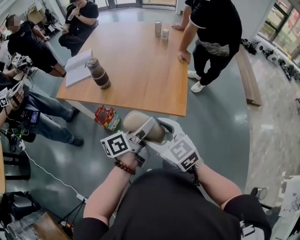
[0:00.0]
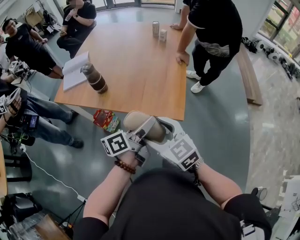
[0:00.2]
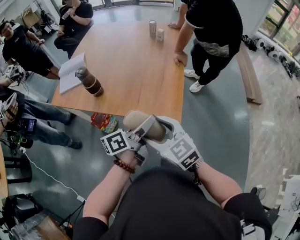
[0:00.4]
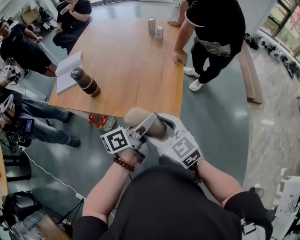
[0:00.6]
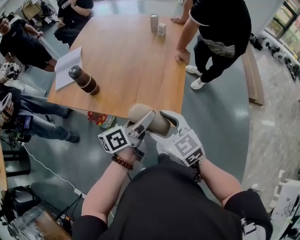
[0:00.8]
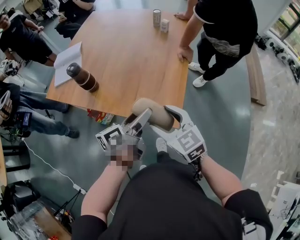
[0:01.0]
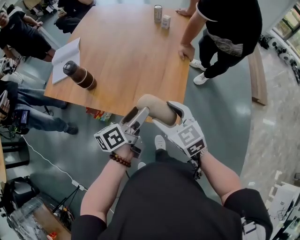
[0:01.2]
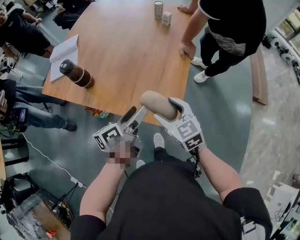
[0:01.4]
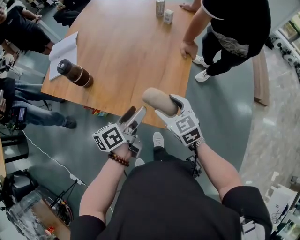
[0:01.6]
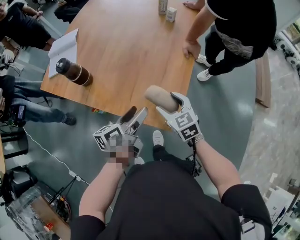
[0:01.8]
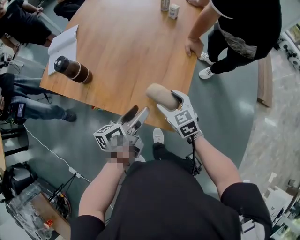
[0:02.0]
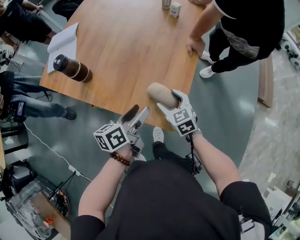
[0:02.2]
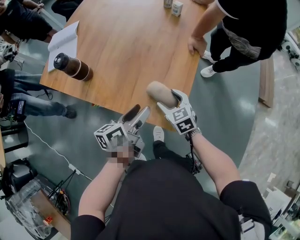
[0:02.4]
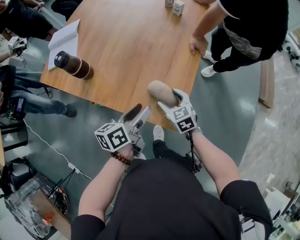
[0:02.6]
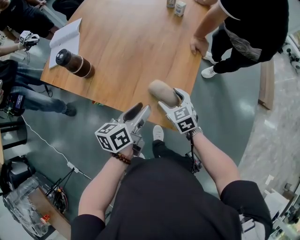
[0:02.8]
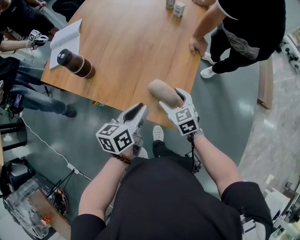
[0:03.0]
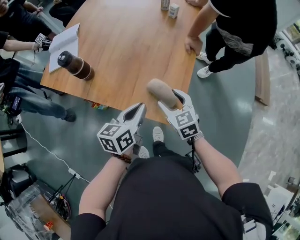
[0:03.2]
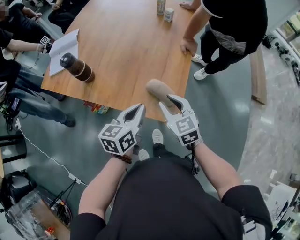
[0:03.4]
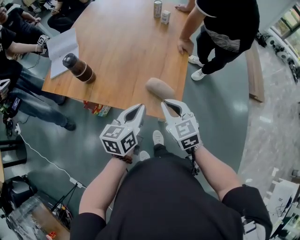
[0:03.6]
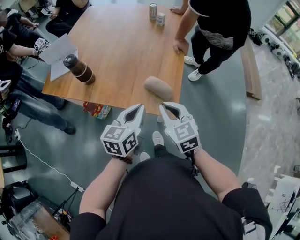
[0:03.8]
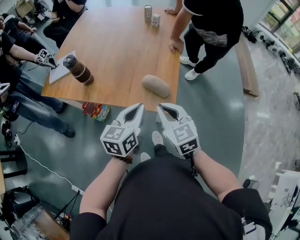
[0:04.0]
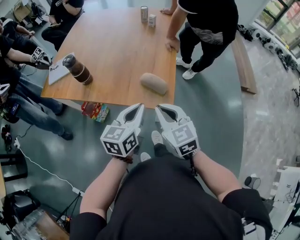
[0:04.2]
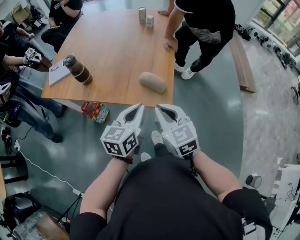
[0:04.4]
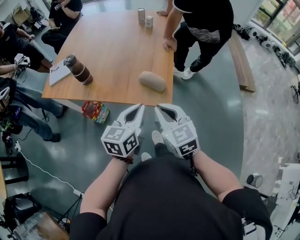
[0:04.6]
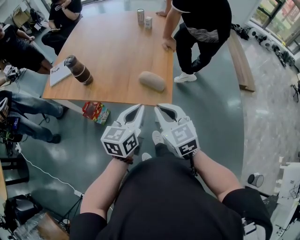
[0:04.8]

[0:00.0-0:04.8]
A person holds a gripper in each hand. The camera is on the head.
0:00.0 to 0:01.6: The left gripper travels forward and downward by approximately 15 cm. The right gripper moves forward, to the right and downward, about 30 cm.
0:01.6 to 0:03.2: The right gripper goes downward and returns, approximately 10 cm each way; the left gripper turns by some 20 degrees, and closes its fingers.
0:03.2 to 0:04.8: The left gripper travels backward and upward by about 15 cm, while the right gripper is displaced backward and upward by some 20 cm, and closes its fingers.

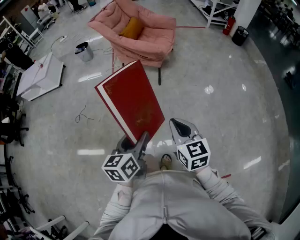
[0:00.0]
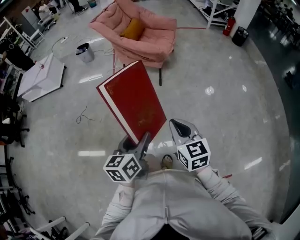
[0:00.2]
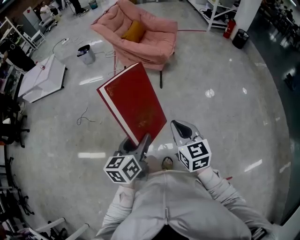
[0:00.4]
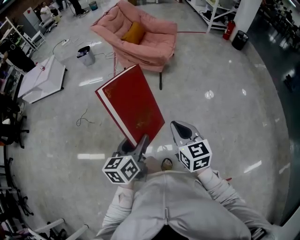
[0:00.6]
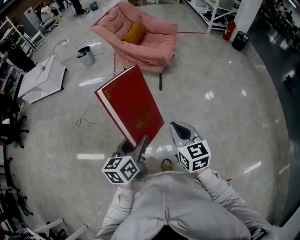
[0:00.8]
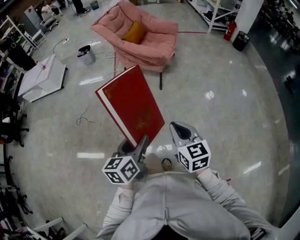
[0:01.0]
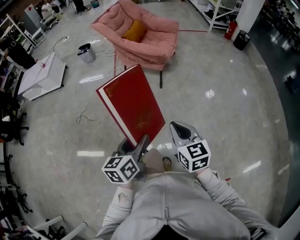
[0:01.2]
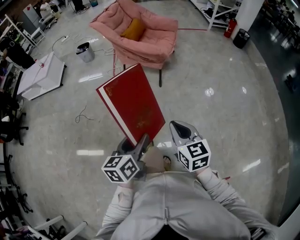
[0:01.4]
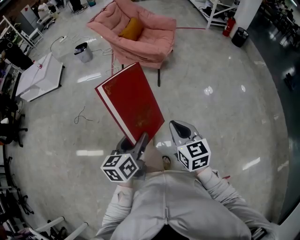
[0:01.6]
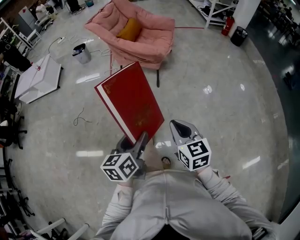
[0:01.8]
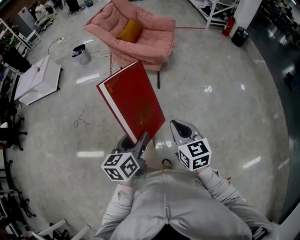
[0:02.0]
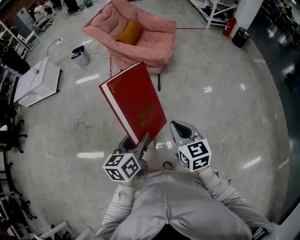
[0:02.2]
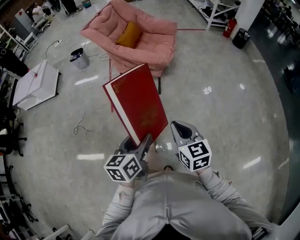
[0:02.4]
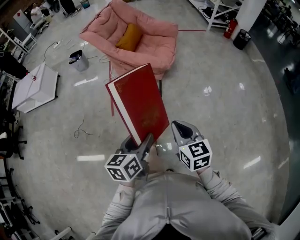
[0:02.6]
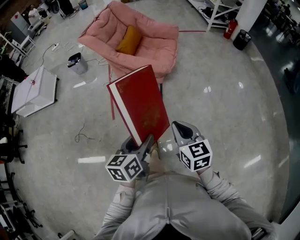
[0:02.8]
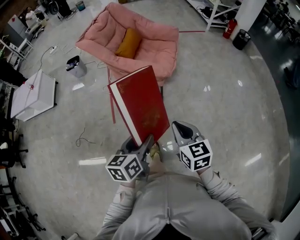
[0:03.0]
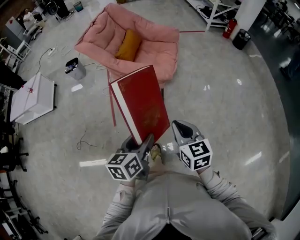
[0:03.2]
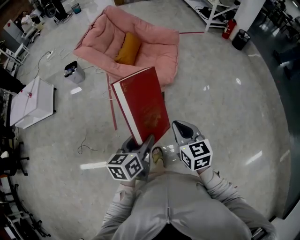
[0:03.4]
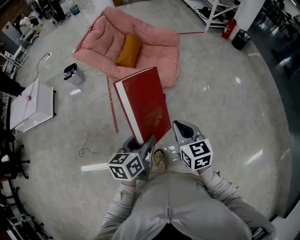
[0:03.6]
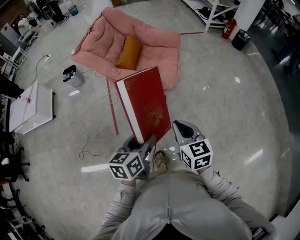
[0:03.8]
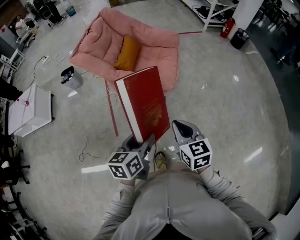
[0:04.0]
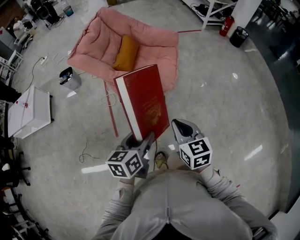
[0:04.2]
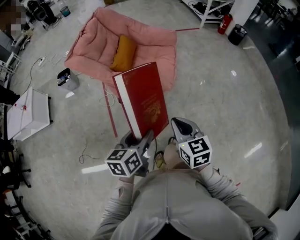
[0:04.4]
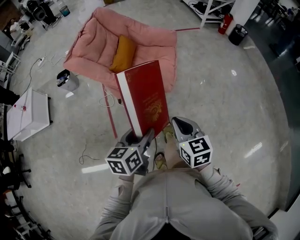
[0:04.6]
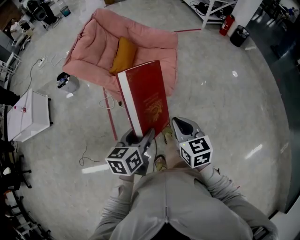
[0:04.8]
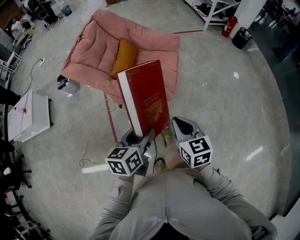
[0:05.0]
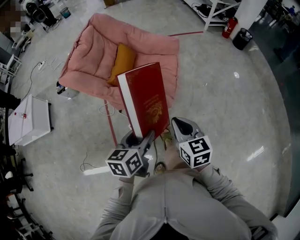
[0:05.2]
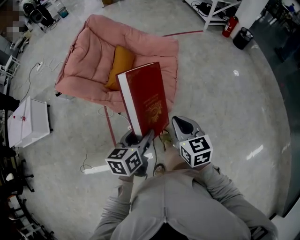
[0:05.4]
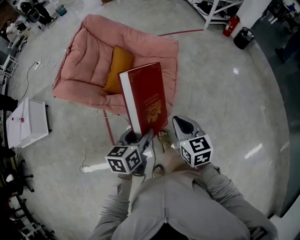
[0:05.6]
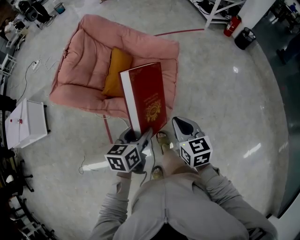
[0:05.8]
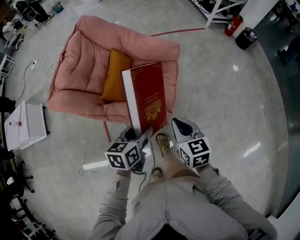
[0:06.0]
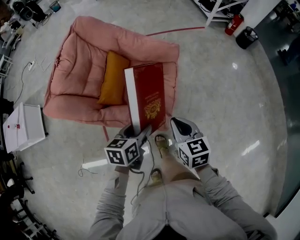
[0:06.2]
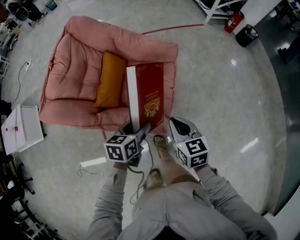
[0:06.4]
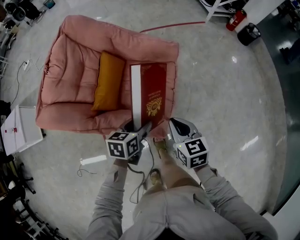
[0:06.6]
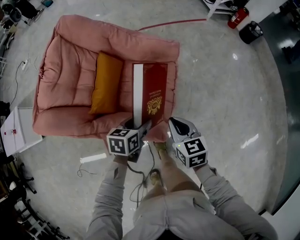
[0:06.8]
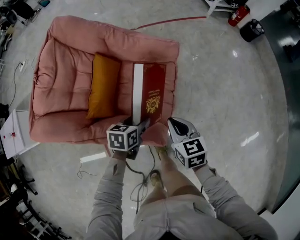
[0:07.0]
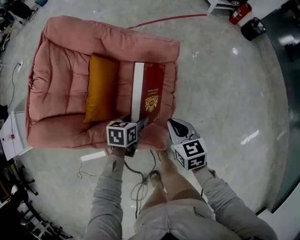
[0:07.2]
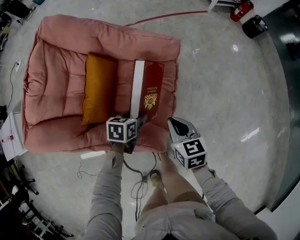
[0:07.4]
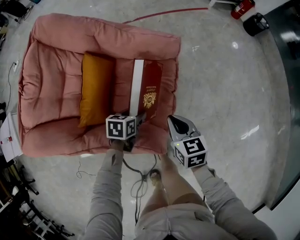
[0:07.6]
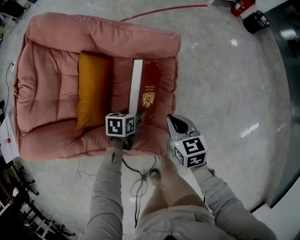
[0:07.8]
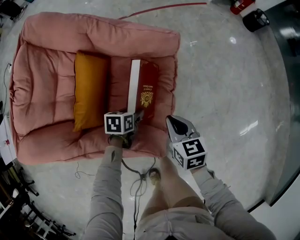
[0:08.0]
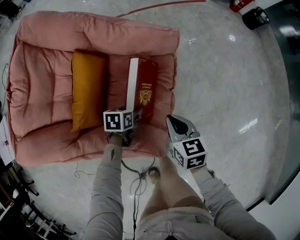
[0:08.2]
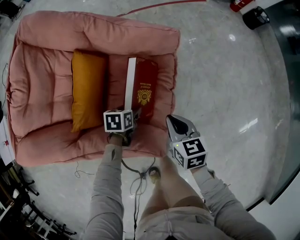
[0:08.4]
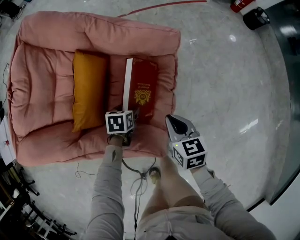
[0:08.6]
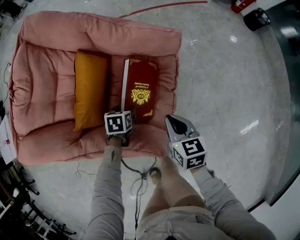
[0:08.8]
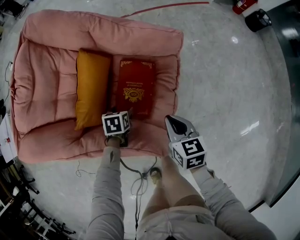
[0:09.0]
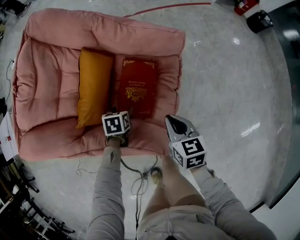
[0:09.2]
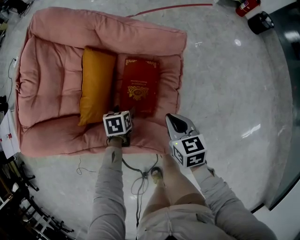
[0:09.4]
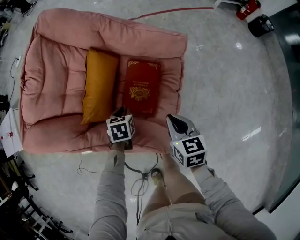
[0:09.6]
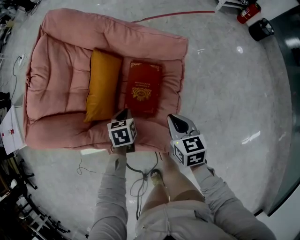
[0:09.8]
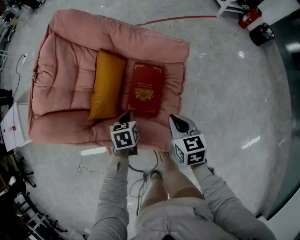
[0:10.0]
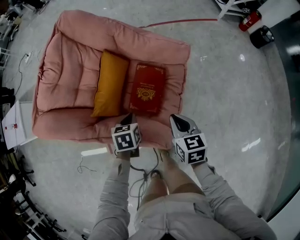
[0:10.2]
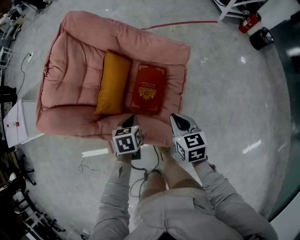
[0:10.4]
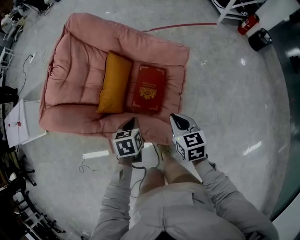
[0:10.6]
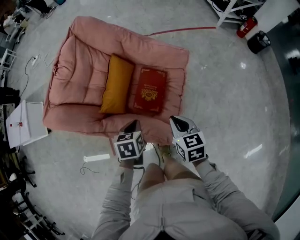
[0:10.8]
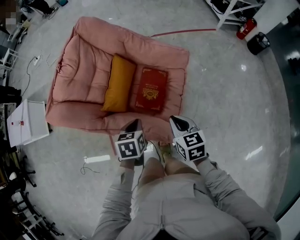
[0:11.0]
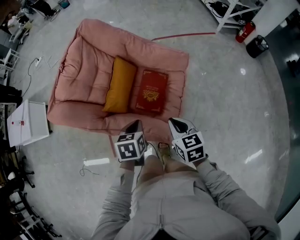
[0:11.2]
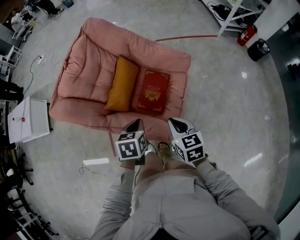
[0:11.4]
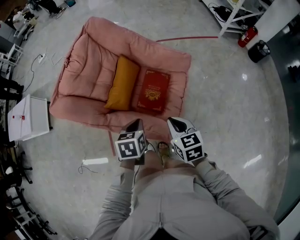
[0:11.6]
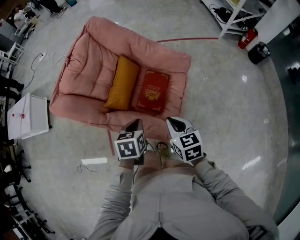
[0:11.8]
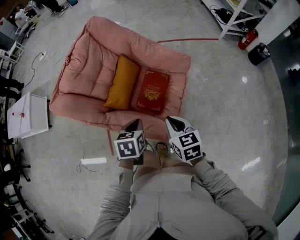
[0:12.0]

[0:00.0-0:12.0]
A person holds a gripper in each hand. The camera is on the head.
0:00.0 to 0:01.6: Neither gripper changes place.
0:01.6 to 0:03.0: Both grippers travel together forward, about 20 cm.
0:03.0 to 0:04.4: Both grippers move forward, some 15 cm.
0:04.4 to 0:06.0: The grippers both shift forward by approximately 25 cm.
0:06.0 to 0:07.6: The left gripper shifts some 30 cm downward and forward, and swivels roughly 30 degrees, while the right gripper moves forward and downward, approximately 25 cm.
0:07.6 to 0:09.0: The left gripper shifts approximately 10 cm to the left and downward.
0:09.0 to 0:10.4: The left gripper moves upward and backward, approximately 15 cm, and closes. Meanwhile the right gripper is displaced upward by some 10 cm.
0:10.4 to 0:12.0: Both grippers travel together upward and backward, roughly 10 cm.

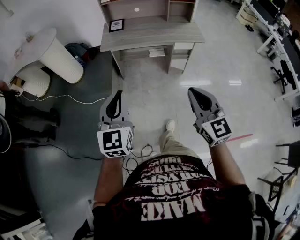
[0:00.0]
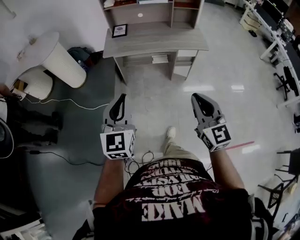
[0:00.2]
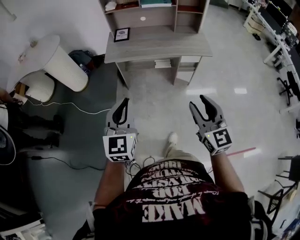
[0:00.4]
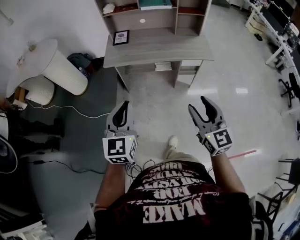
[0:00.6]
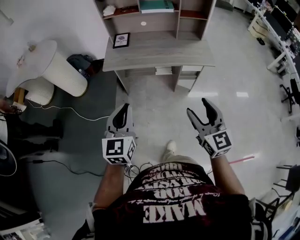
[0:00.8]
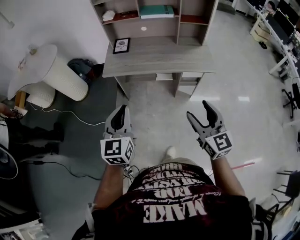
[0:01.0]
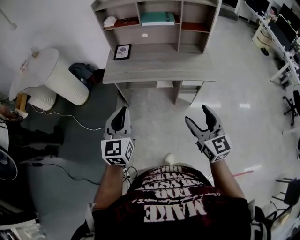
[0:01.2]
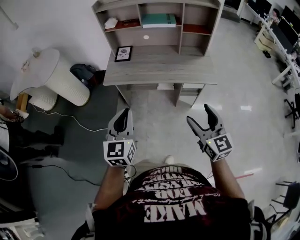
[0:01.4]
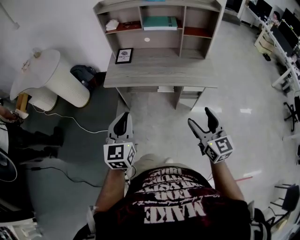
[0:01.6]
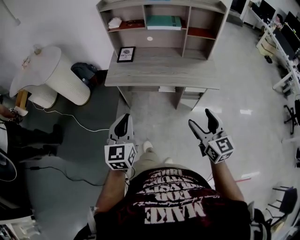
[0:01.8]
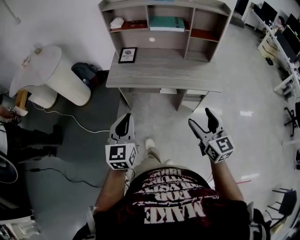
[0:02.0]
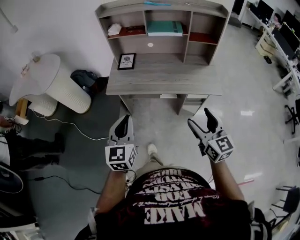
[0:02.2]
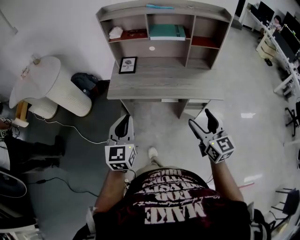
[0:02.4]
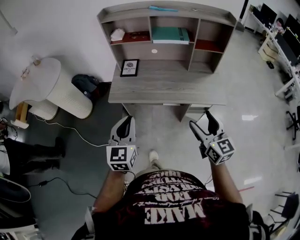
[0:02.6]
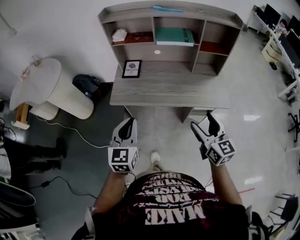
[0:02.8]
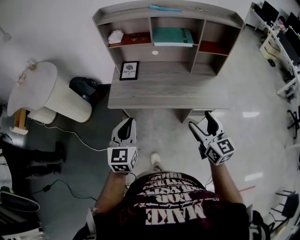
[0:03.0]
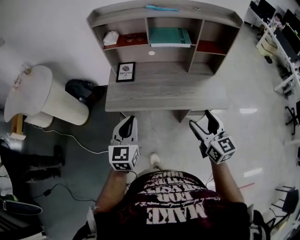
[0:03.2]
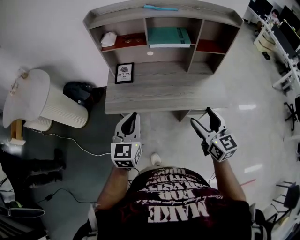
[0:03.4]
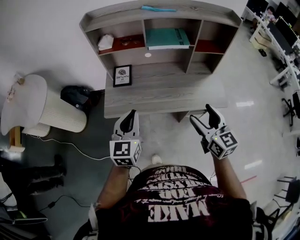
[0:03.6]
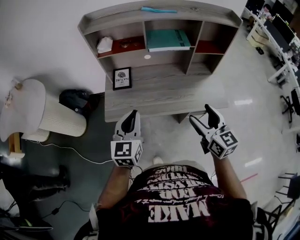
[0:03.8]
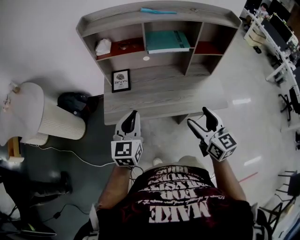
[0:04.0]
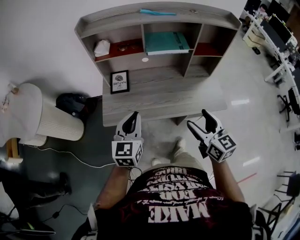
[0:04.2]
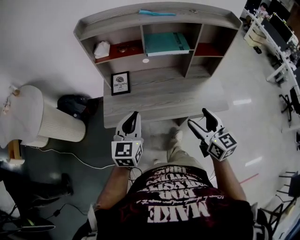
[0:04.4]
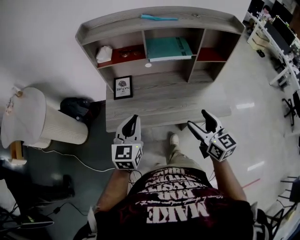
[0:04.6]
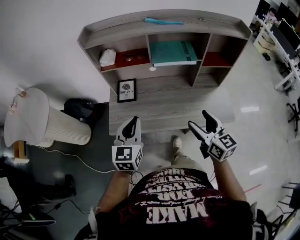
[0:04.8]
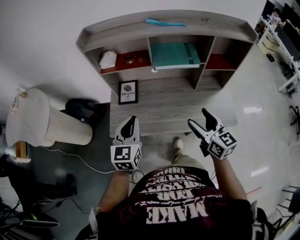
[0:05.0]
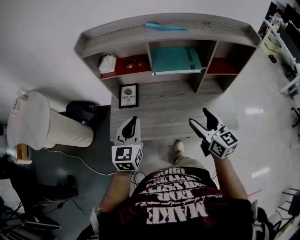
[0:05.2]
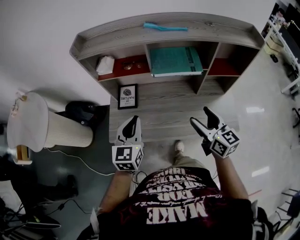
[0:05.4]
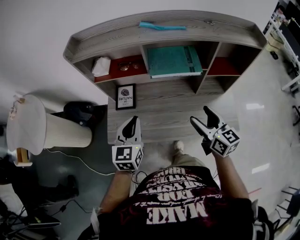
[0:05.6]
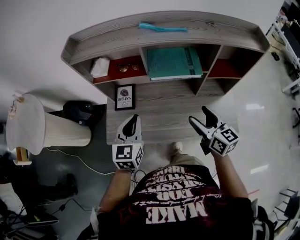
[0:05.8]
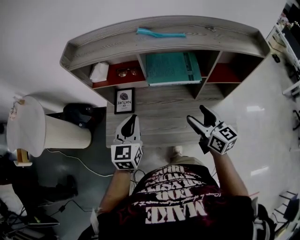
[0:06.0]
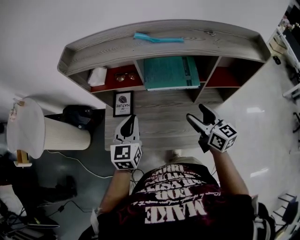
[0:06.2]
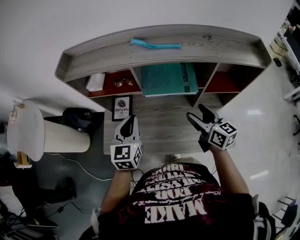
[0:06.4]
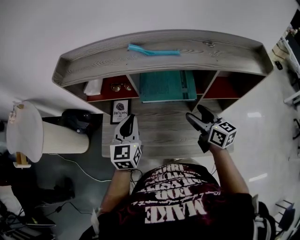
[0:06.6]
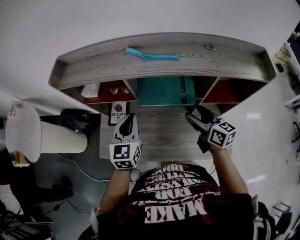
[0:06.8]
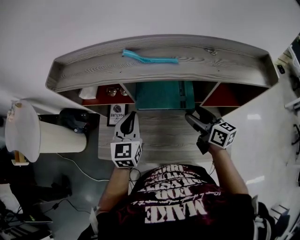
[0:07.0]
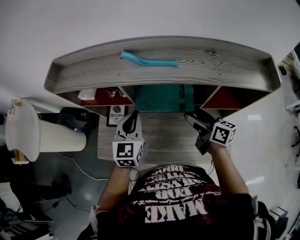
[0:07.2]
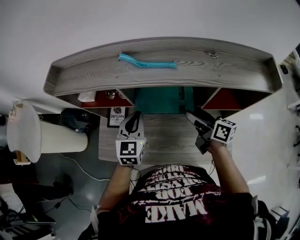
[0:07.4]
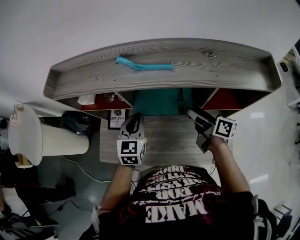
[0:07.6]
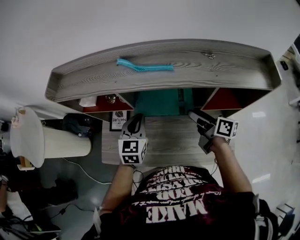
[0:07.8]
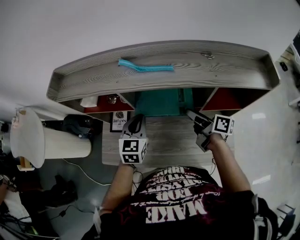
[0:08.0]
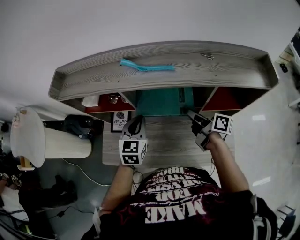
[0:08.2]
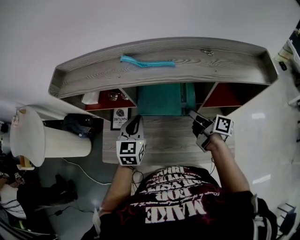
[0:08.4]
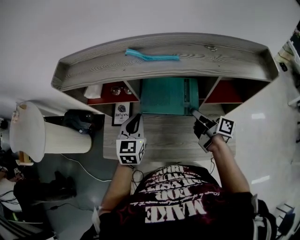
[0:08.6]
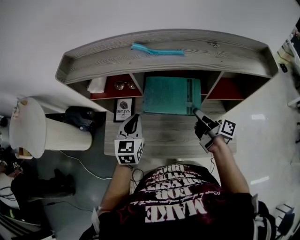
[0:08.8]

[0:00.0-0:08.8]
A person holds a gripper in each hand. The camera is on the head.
0:00.0 to 0:01.4: Both grippers travel together forward and to the right, approximately 25 cm. The right gripper opens up.
0:01.4 to 0:03.0: Both grippers travel together forward, some 20 cm.
0:03.0 to 0:04.4: The two grippers go some 10 cm forward.
0:04.4 to 0:05.8: The grippers both shift forward by some 20 cm.
0:05.8 to 0:07.4: Both grippers move forward and to the right, about 20 cm. The right gripper changes its angle by roughly 30 degrees.
0:07.4 to 0:08.8: The right gripper goes about 5 cm backward, turns by some 30 degrees, and closes its fingers; the left gripper is displaced to the left by approximately 5 cm.
